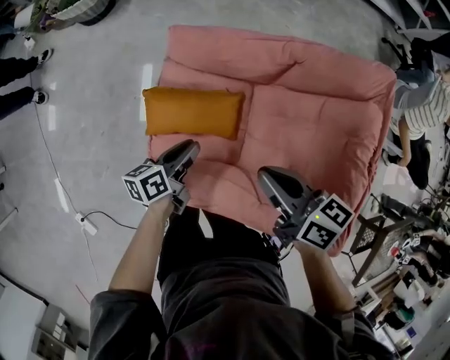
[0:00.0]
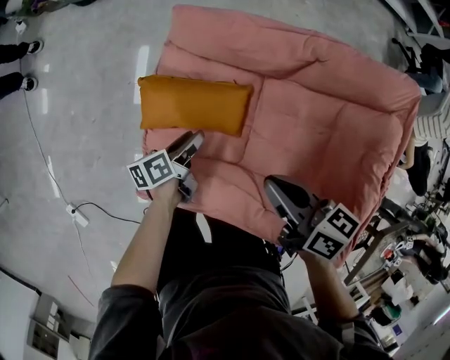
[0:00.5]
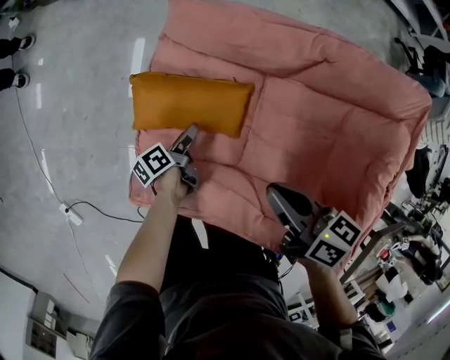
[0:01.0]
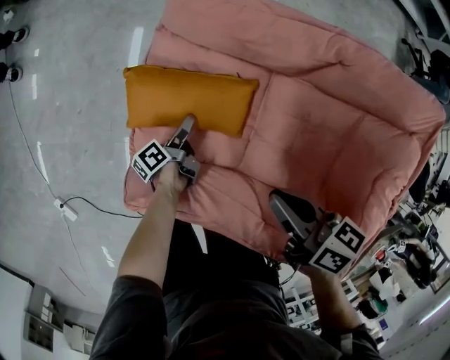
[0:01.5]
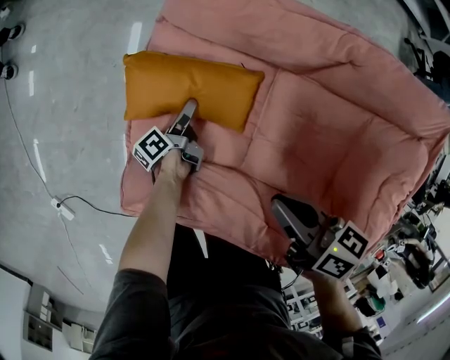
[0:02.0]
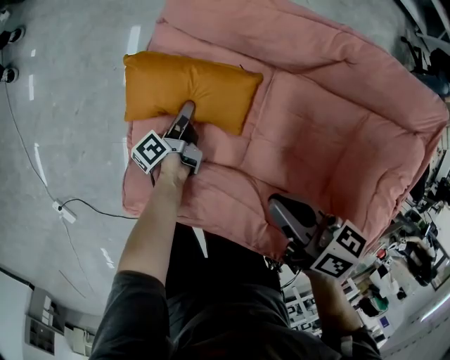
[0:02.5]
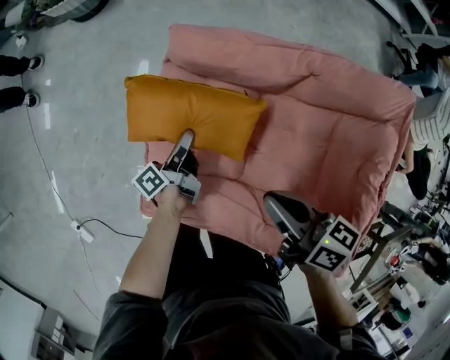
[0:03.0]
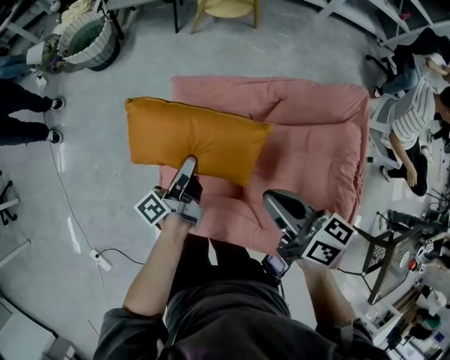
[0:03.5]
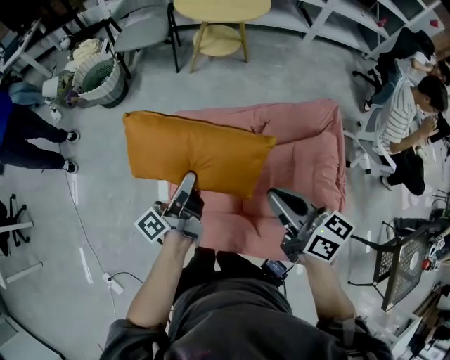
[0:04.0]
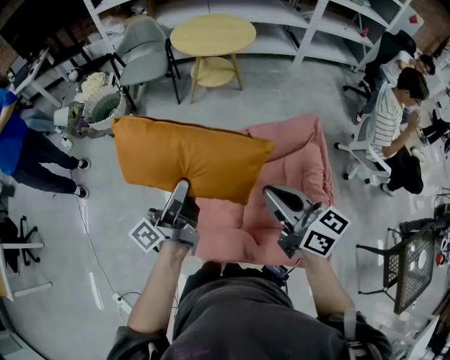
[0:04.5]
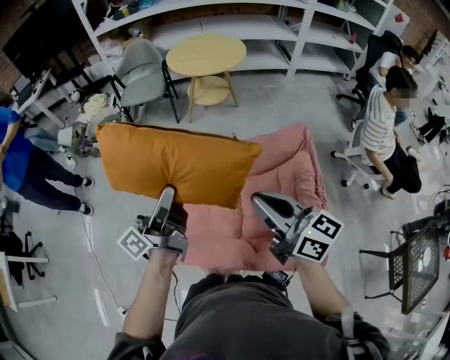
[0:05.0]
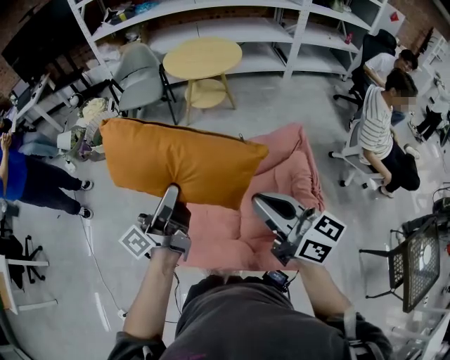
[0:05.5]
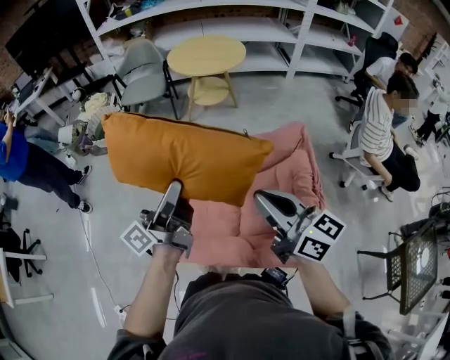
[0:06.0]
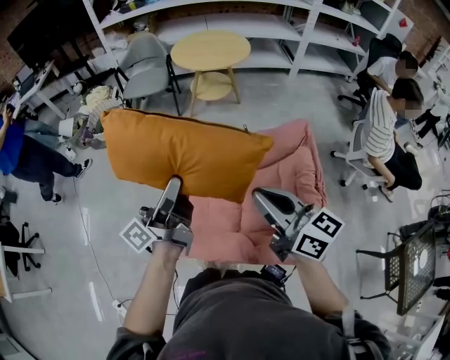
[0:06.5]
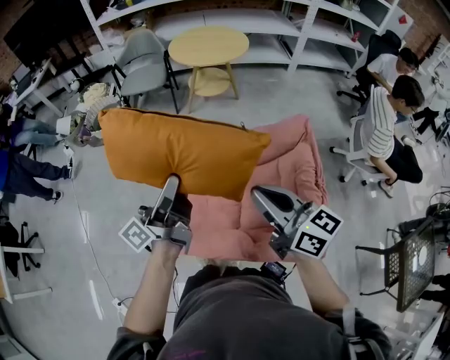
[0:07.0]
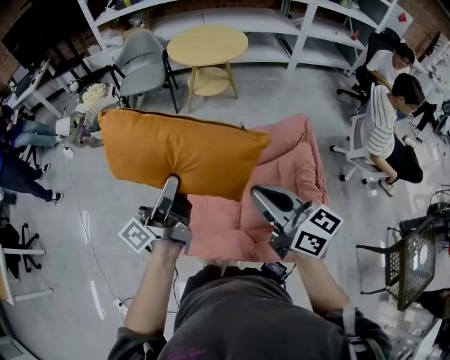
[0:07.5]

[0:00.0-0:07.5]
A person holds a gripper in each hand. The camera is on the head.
0:00.0 to 0:02.0: The right gripper goes about 15 cm downward; the left gripper heads downward, covering about 25 cm, turns by approximately 40 degrees, and opens.
0:02.0 to 0:04.0: The right gripper shifts some 30 cm upward, and swivels roughly 40 degrees. Meanwhile the left gripper is displaced upward by about 50 cm, points its fingers some 30 degrees further upward, and closes.
0:04.0 to 0:05.5: The grippers both shift upward by some 15 cm. The left gripper changes its angle by about 20 degrees.
0:05.5 to 0:07.5: The grippers move only a little.

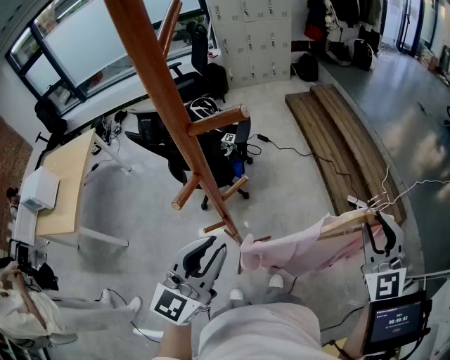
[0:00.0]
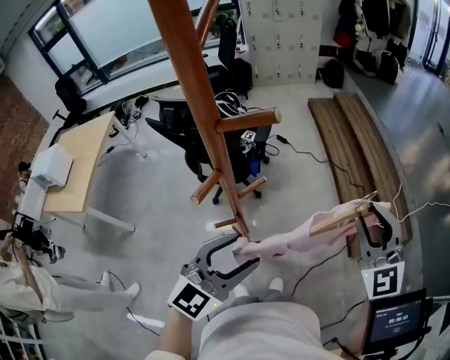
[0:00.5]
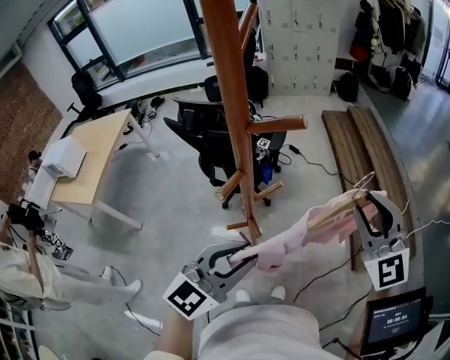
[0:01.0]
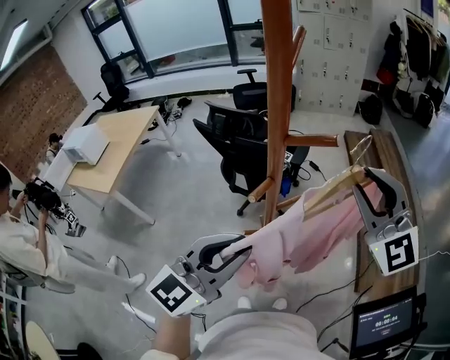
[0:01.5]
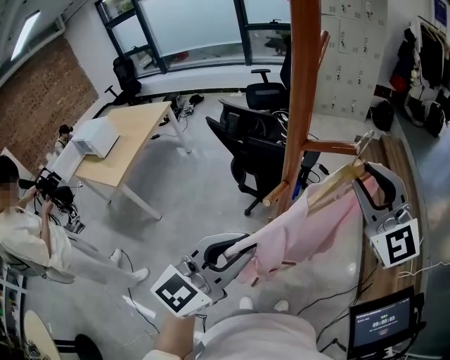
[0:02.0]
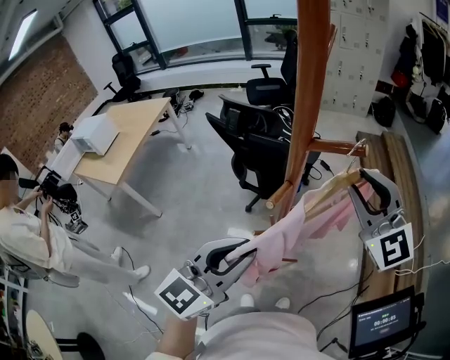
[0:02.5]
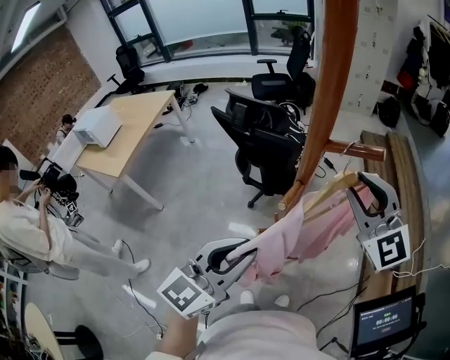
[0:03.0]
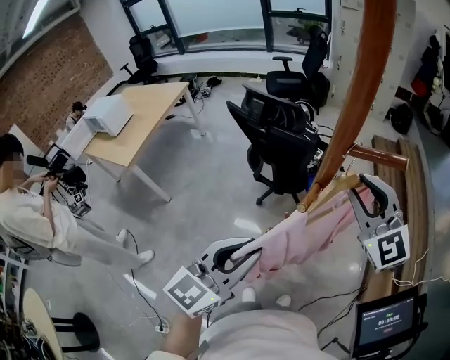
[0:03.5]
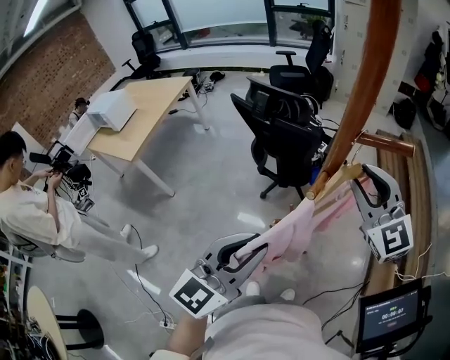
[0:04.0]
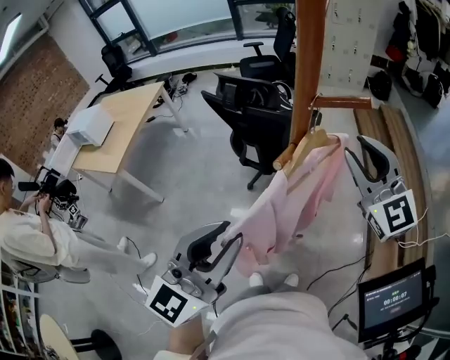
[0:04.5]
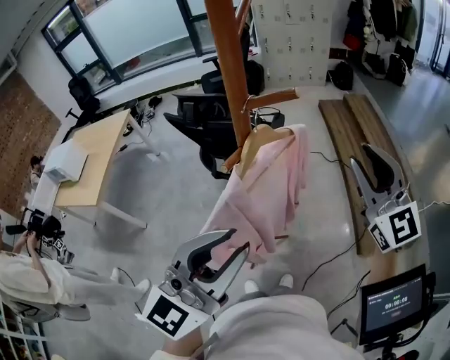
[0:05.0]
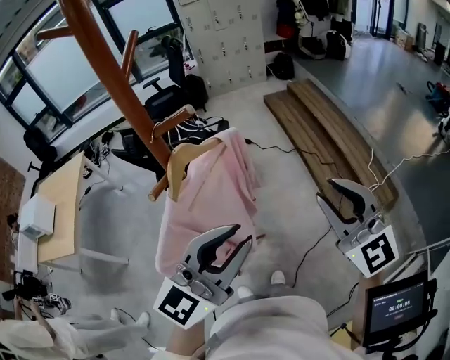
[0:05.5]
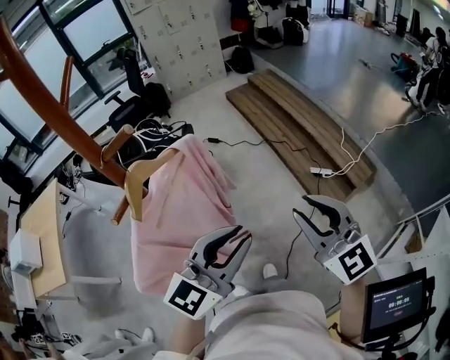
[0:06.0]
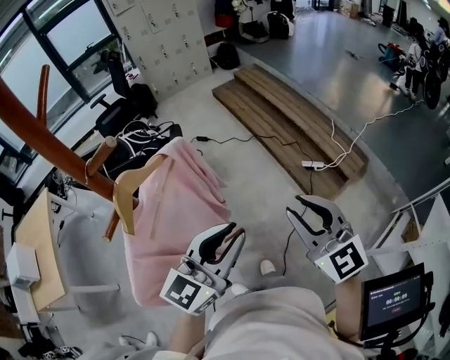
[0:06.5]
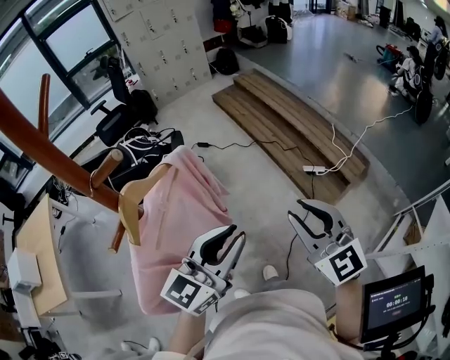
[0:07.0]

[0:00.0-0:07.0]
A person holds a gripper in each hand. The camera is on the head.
0:00.0 to 0:02.0: The left gripper shifts approximately 5 cm upward, and opens, then closes once more. The right gripper heads to the left, upward and forward, covering approximately 30 cm, and swivels roughly 40 degrees.
0:02.0 to 0:03.5: The right gripper heads downward and to the left, covering approximately 10 cm, while the left gripper is displaced downward by roughly 5 cm.
0:03.5 to 0:05.0: The left gripper travels upward, to the right and backward by approximately 15 cm, and swivels some 20 degrees. The right gripper moves to the right and backward, about 15 cm, and changes its angle by roughly 20 degrees.
0:05.0 to 0:07.0: The right gripper is displaced downward, to the right and backward by about 20 cm, and turns by some 30 degrees; the left gripper travels downward, to the right and forward by about 20 cm, and changes its angle by some 30 degrees.

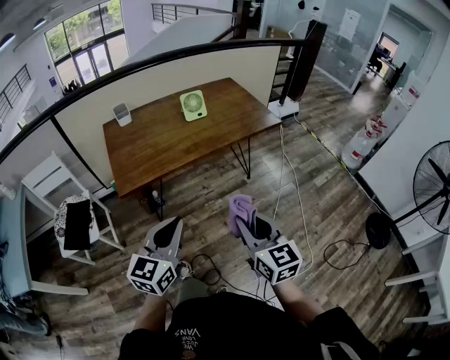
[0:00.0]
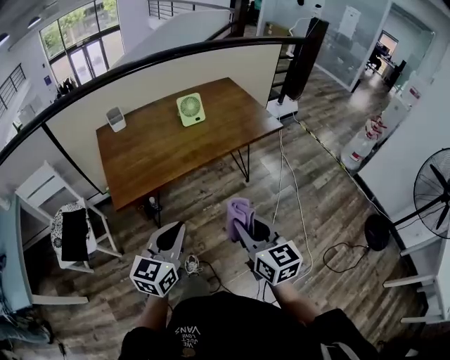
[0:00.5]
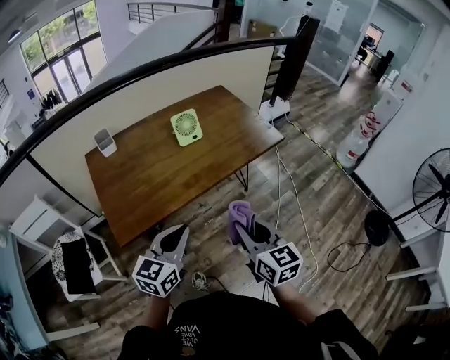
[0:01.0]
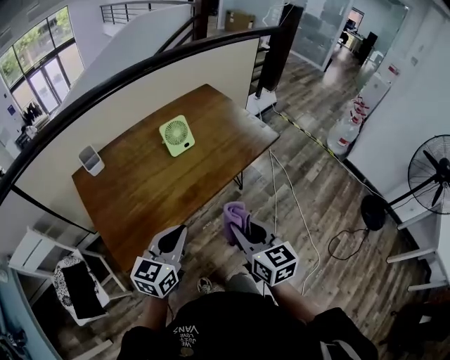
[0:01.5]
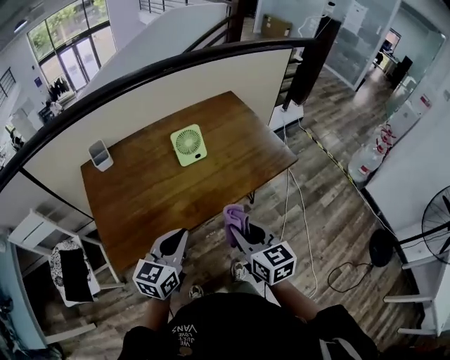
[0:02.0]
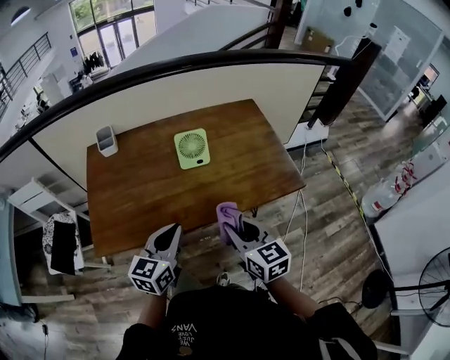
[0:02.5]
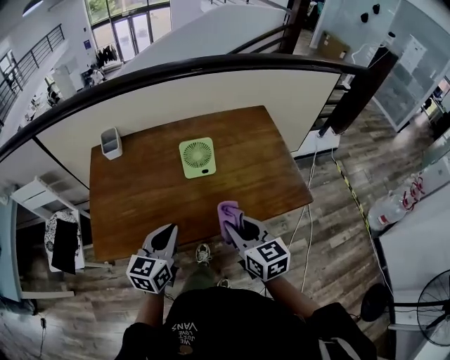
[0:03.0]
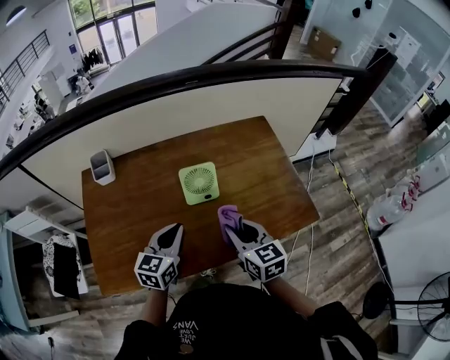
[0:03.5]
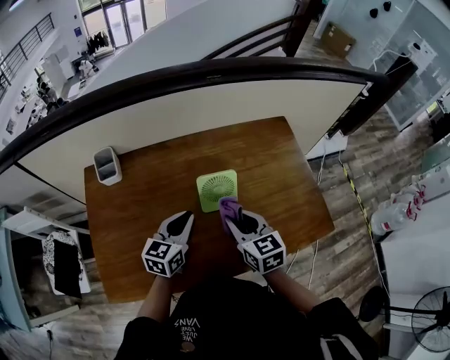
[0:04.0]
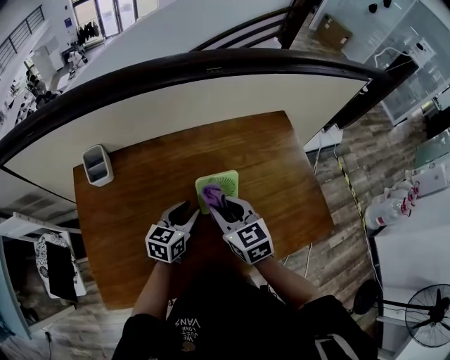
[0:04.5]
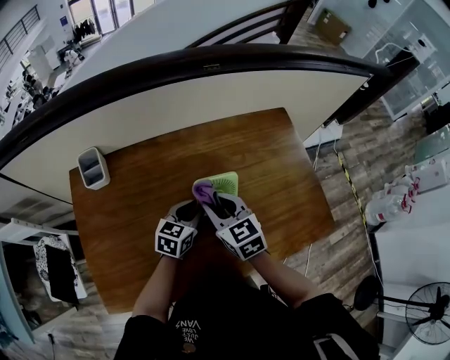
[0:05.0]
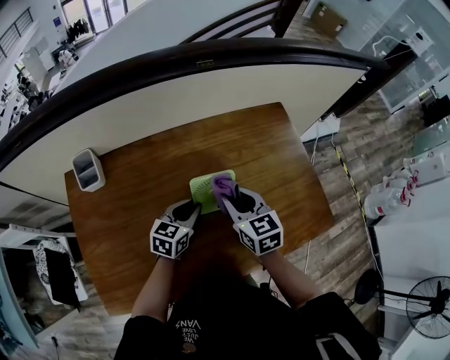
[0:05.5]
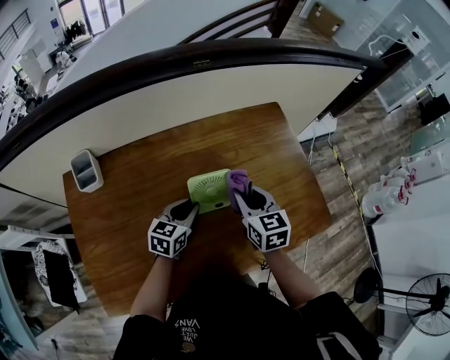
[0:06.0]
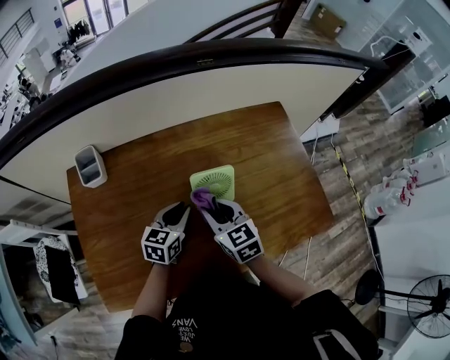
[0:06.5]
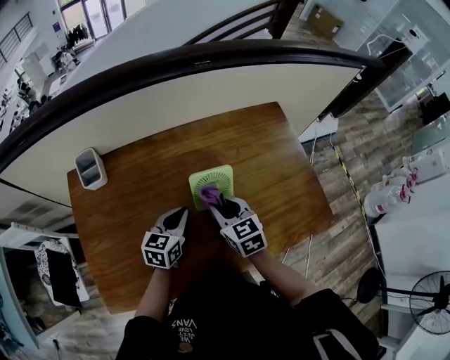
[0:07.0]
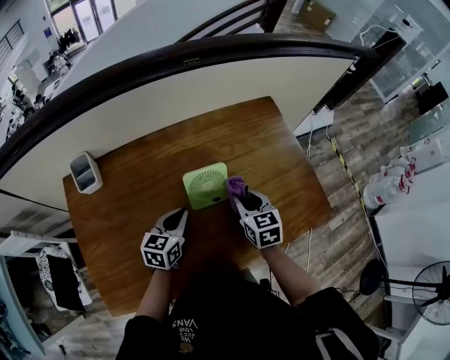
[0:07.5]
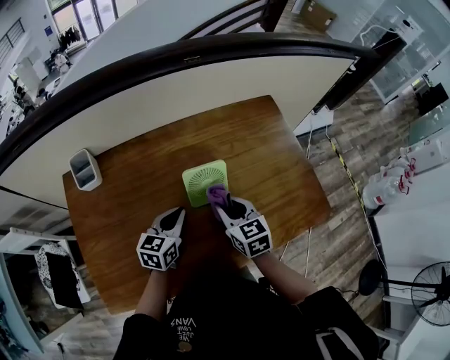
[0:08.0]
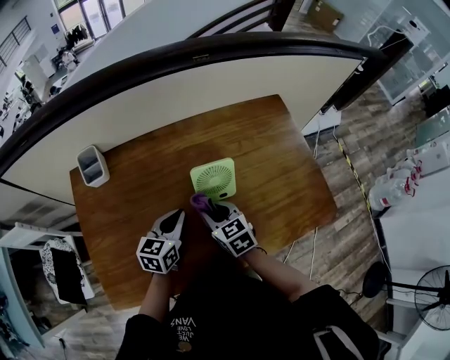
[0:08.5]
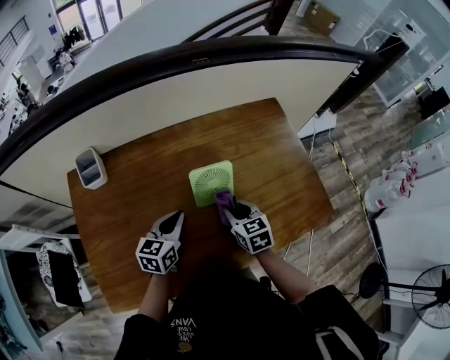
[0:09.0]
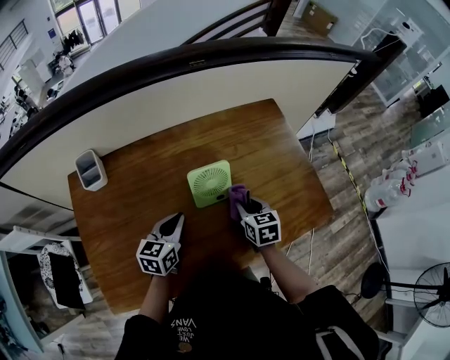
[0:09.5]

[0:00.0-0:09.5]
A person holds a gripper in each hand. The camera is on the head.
0:00.0 to 0:02.0: The grippers both shift forward by some 30 cm.
0:02.0 to 0:04.0: Both grippers travel together forward, approximately 30 cm.
0:04.0 to 0:05.5: The right gripper goes approximately 10 cm forward, while the left gripper heads downward and forward, covering about 10 cm.
0:05.5 to 0:07.5: The right gripper goes left and right, roughly 10 cm each way, reversing 2 times.
0:07.5 to 0:09.5: The right gripper reaches approximately 15 cm to the left, then returns.

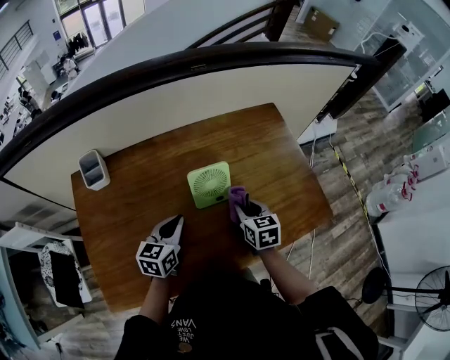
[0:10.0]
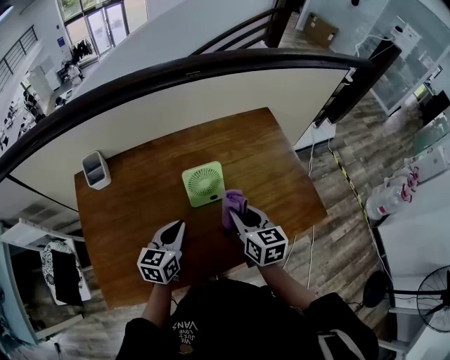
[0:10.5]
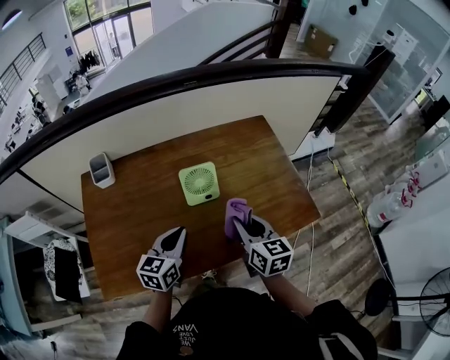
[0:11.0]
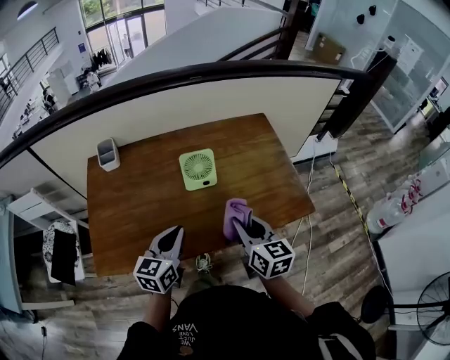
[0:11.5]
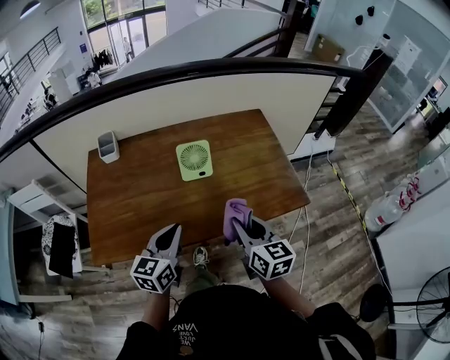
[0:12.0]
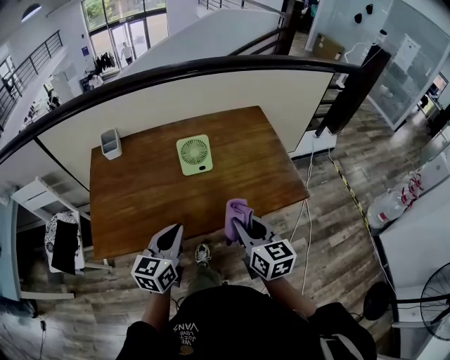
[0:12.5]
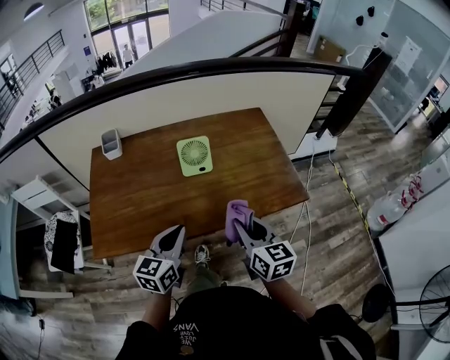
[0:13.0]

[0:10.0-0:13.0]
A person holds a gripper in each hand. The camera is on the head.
0:10.0 to 0:11.5: The left gripper goes about 20 cm backward, upward and to the right. Meanwhile the right gripper shifts roughly 20 cm backward and upward, and changes its angle by roughly 20 degrees.
0:11.5 to 0:13.0: The grippers both shift backward by about 10 cm.
